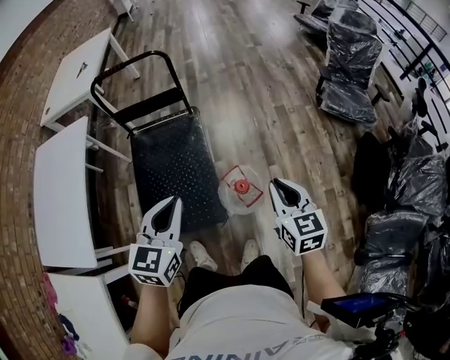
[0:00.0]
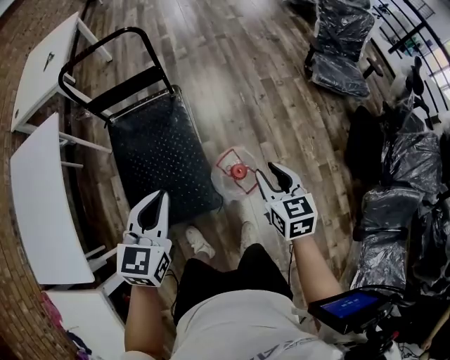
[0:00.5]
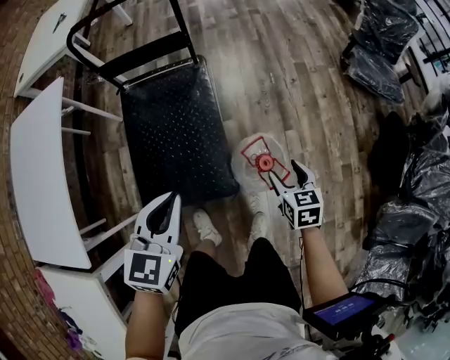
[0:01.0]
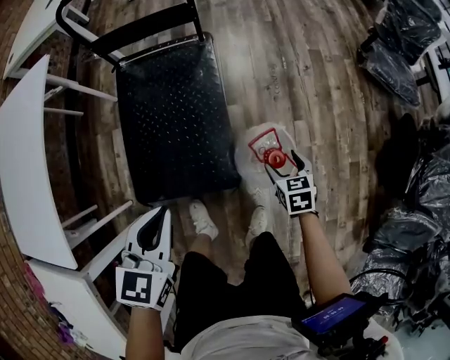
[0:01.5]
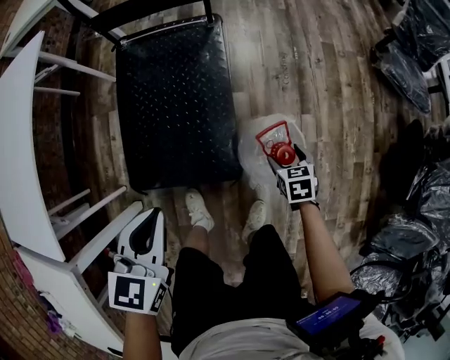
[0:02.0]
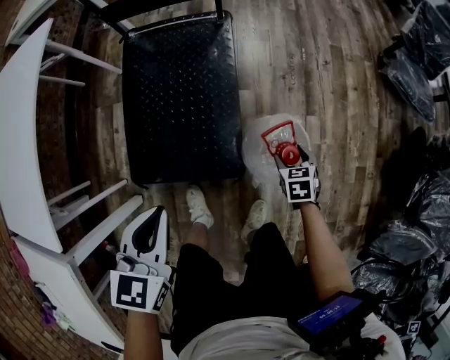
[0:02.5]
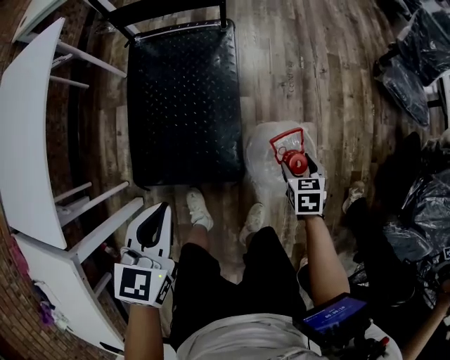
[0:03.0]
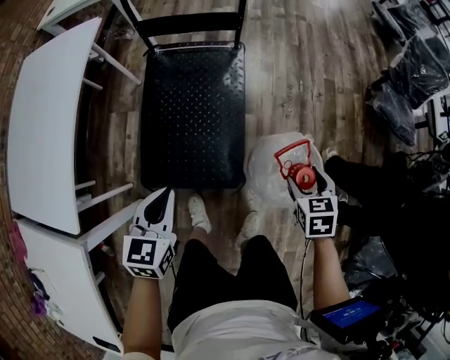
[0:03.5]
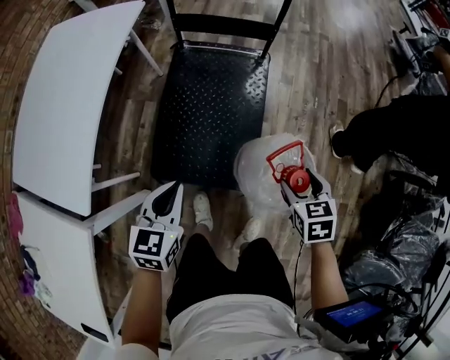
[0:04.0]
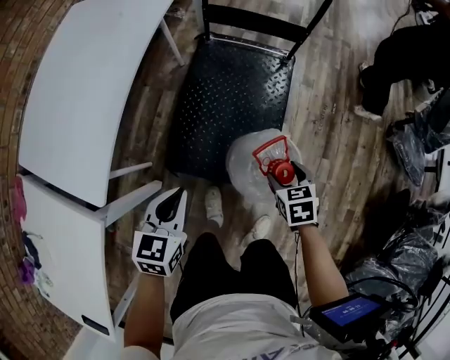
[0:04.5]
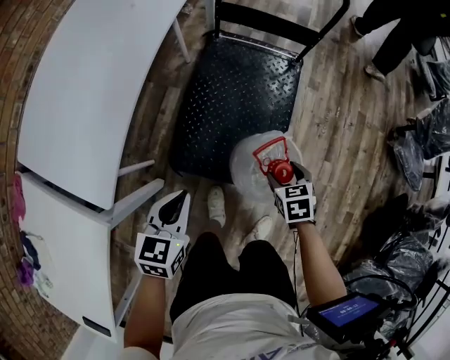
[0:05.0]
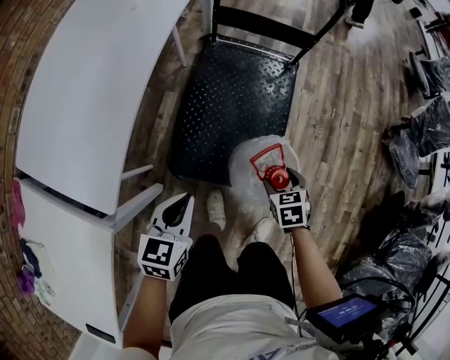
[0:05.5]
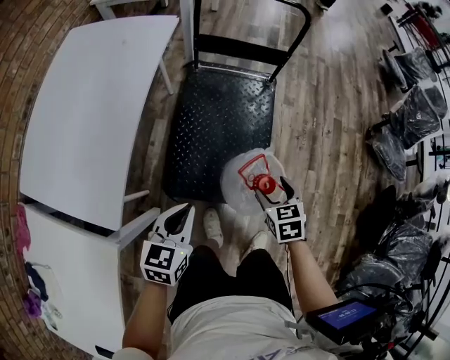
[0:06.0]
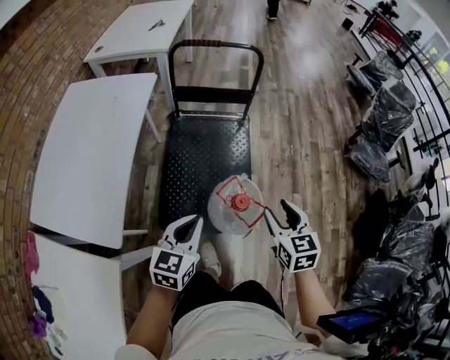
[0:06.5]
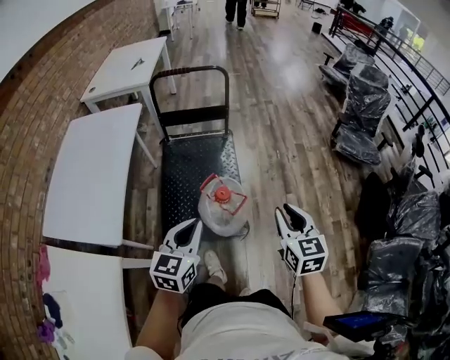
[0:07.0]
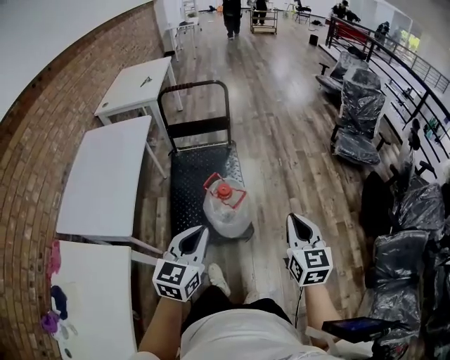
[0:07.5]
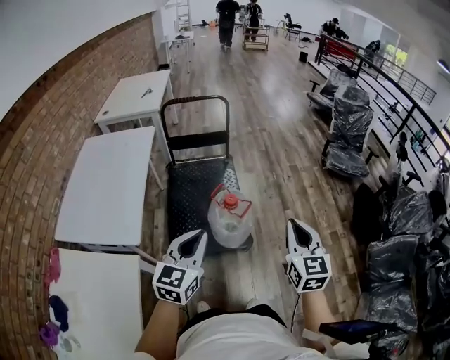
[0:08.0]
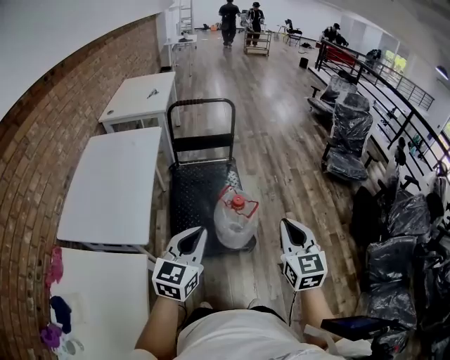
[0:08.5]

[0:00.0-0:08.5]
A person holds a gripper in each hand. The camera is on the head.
0:00.0 to 0:02.0: The left gripper heads downward and to the left, covering approximately 25 cm, and rotates approximately 20 degrees. The right gripper shifts some 40 cm downward, points its fingers some 40 degrees further downward, and opens up.
0:02.0 to 0:04.0: The left gripper is displaced to the left by approximately 10 cm, while the right gripper heads upward and to the left, covering roughly 30 cm.
0:04.0 to 0:06.5: The right gripper goes approximately 15 cm upward and to the left, and rotates about 20 degrees, while the left gripper moves upward, roughly 10 cm.
0:06.5 to 0:08.5: Both grippers travel together backward and upward, about 25 cm. The right gripper turns by about 20 degrees, and closes.

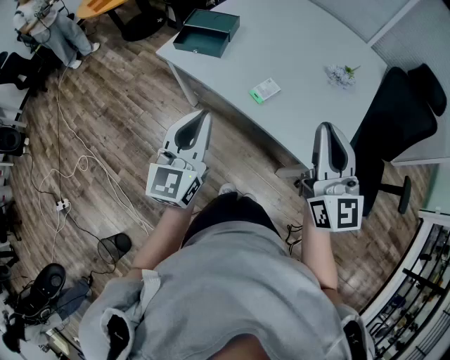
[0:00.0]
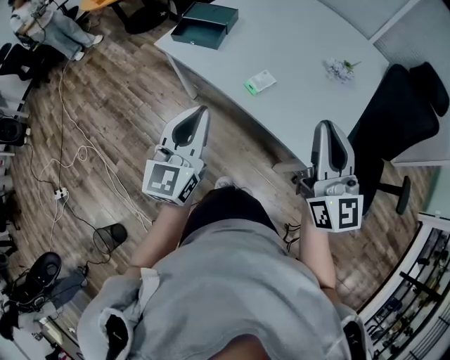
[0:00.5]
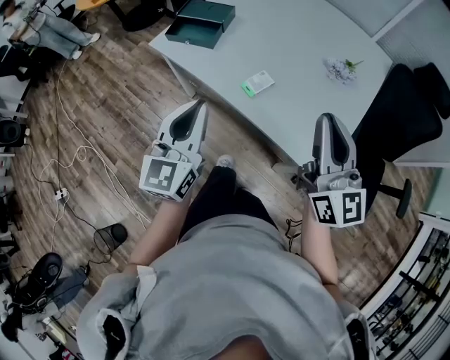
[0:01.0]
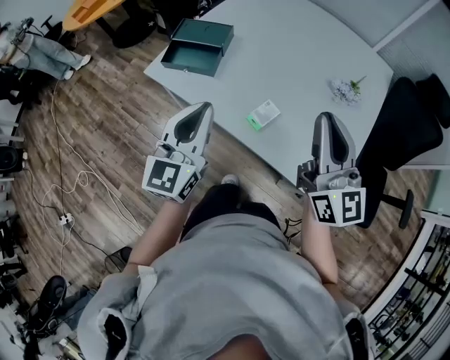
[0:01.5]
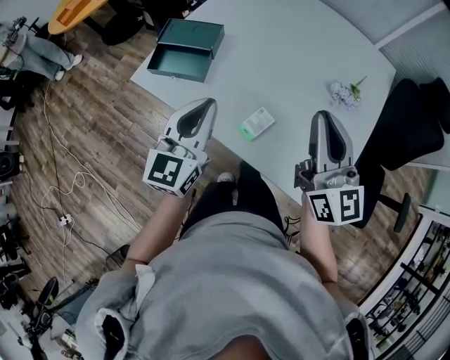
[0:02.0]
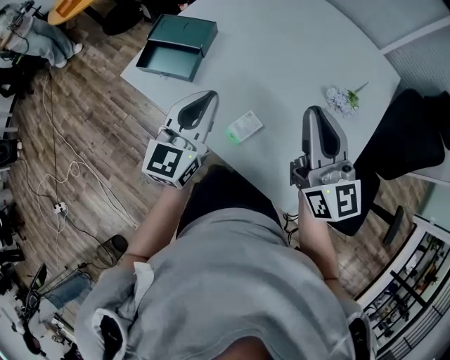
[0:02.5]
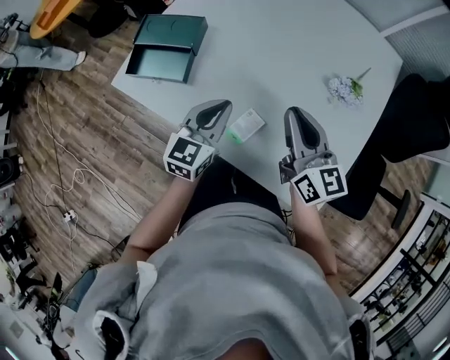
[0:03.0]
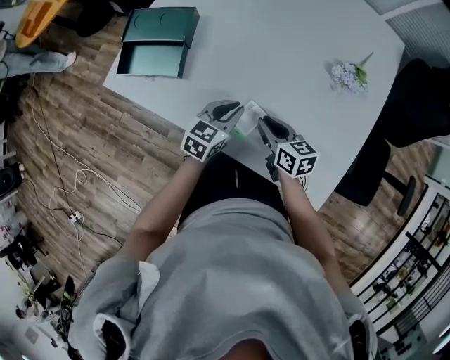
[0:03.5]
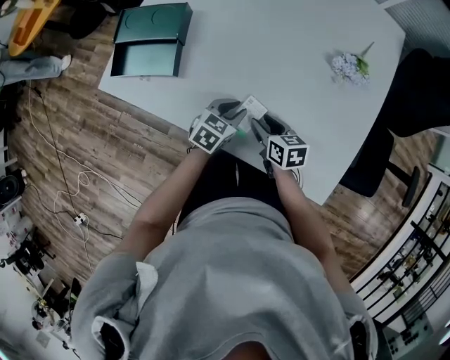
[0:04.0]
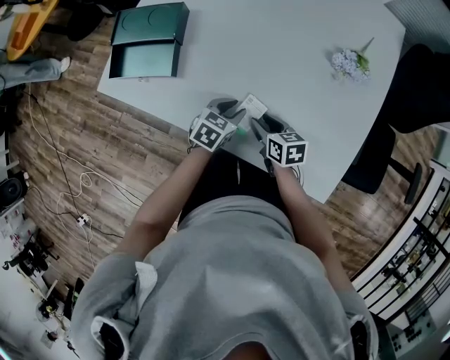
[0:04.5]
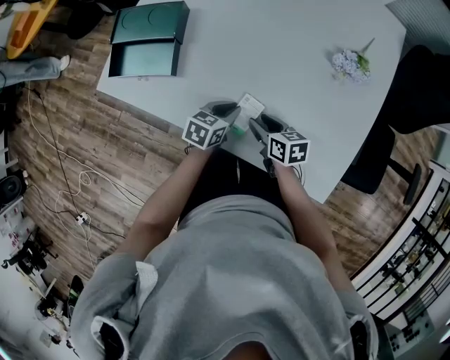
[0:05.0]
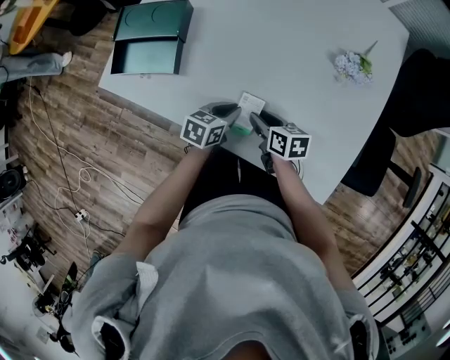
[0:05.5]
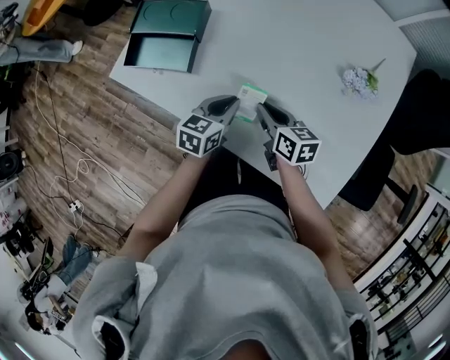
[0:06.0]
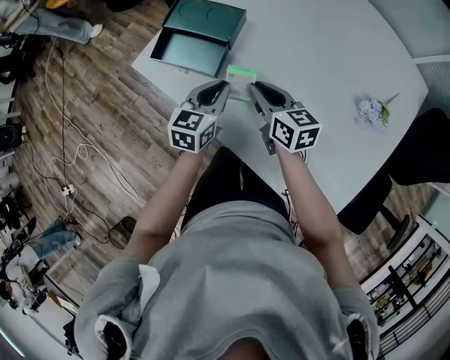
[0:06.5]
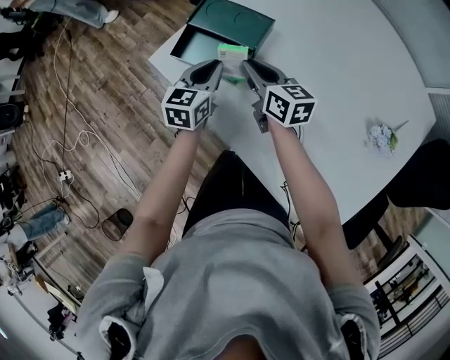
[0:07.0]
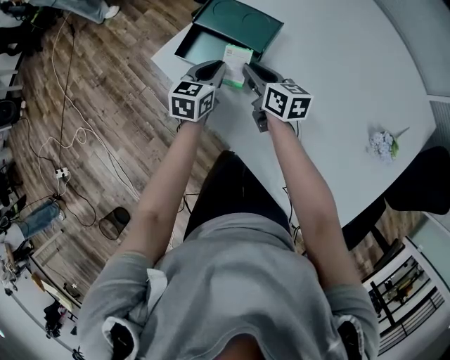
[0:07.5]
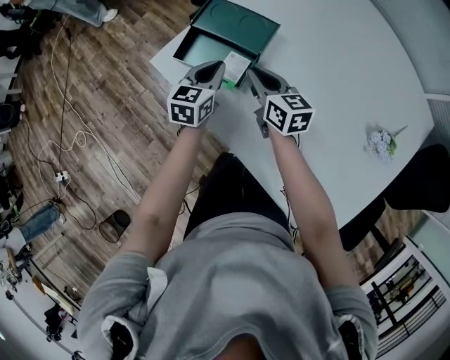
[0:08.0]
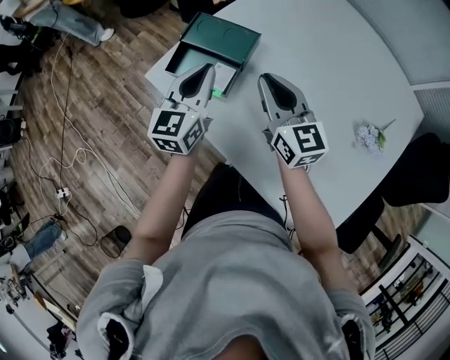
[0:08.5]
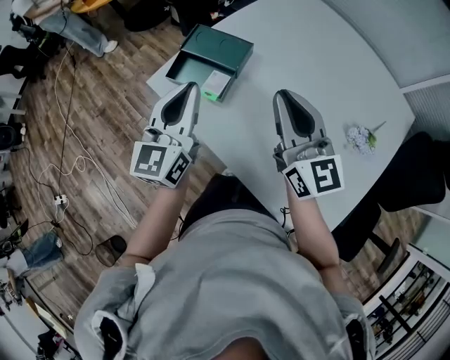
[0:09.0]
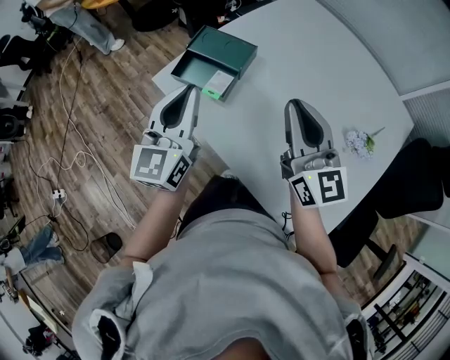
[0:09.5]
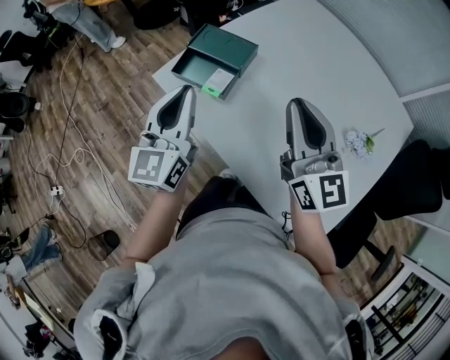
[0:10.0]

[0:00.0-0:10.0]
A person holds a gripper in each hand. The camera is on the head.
0:00.0 to 0:02.0: Both grippers travel together forward, about 30 cm.
0:02.0 to 0:04.0: Both grippers move downward, some 35 cm. The left gripper angles its fingers downward, by approximately 40 degrees, while the right gripper tilts its fingers some 50 degrees downward, and opens up.
0:04.0 to 0:06.0: The left gripper is displaced upward and to the left by about 10 cm, and changes its angle by roughly 20 degrees. The right gripper is displaced upward and forward by approximately 10 cm, and closes.
0:06.0 to 0:08.0: The right gripper heads forward and to the left, covering about 30 cm, and rotates some 20 degrees. The left gripper is displaced to the left and forward by approximately 30 cm, and rotates some 30 degrees.
0:08.0 to 0:10.0: The left gripper travels upward and backward by approximately 30 cm, and turns by some 30 degrees. The right gripper travels upward, backward and to the right by some 35 cm, and turns by roughly 40 degrees.

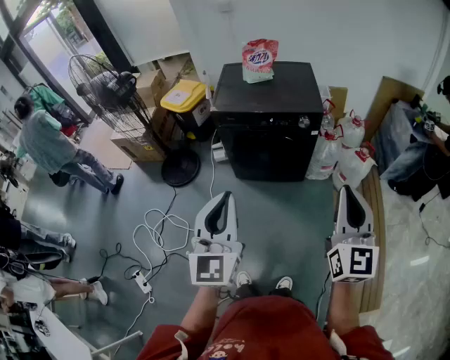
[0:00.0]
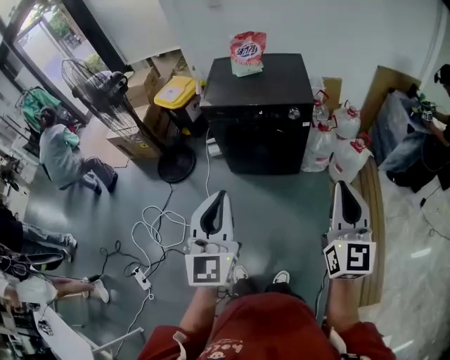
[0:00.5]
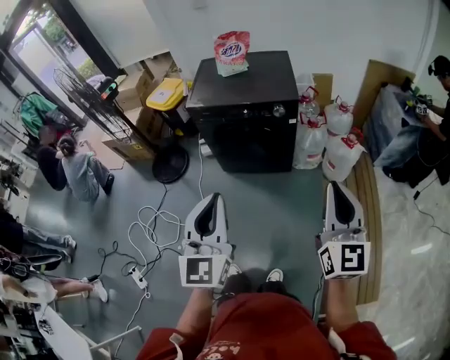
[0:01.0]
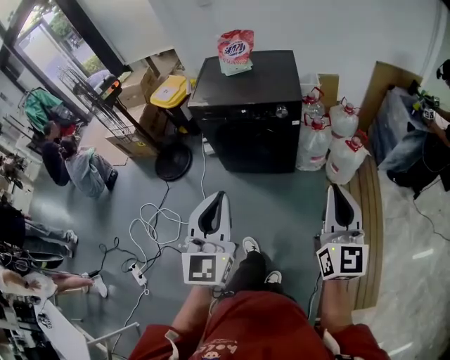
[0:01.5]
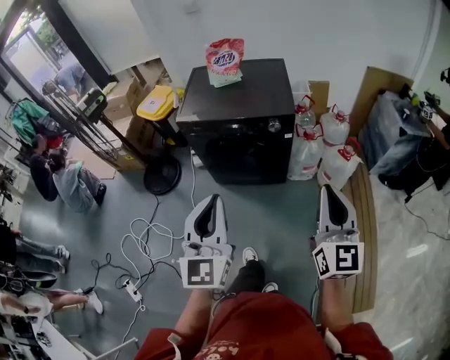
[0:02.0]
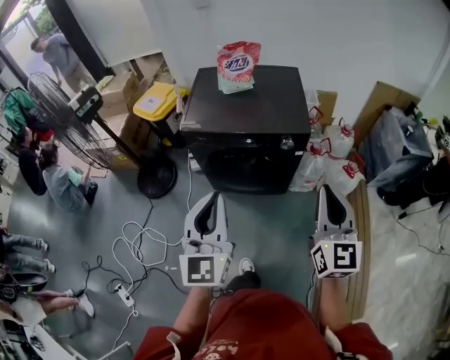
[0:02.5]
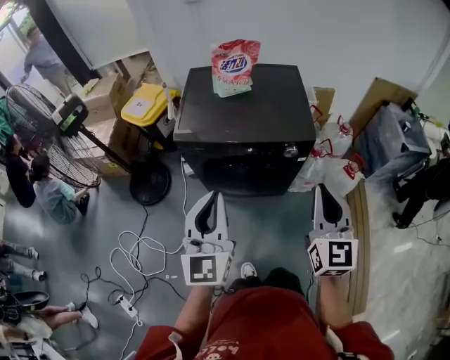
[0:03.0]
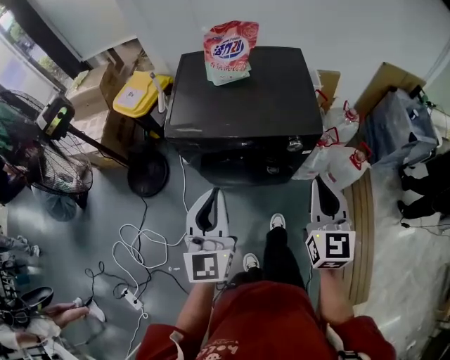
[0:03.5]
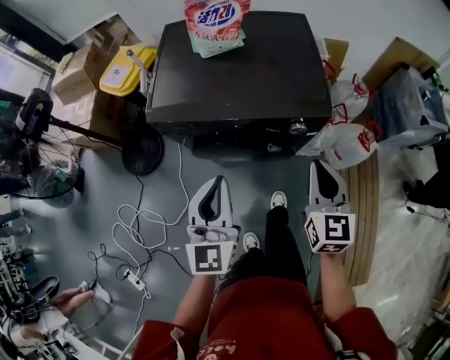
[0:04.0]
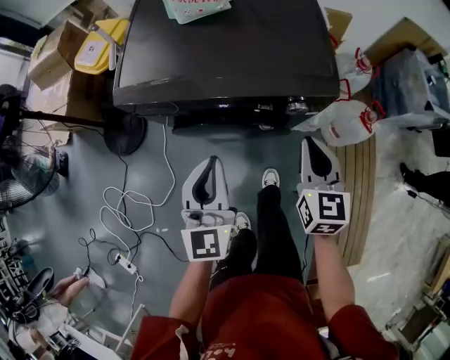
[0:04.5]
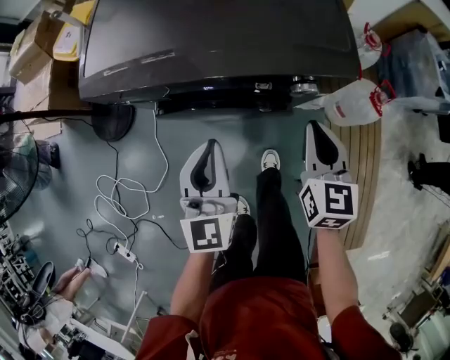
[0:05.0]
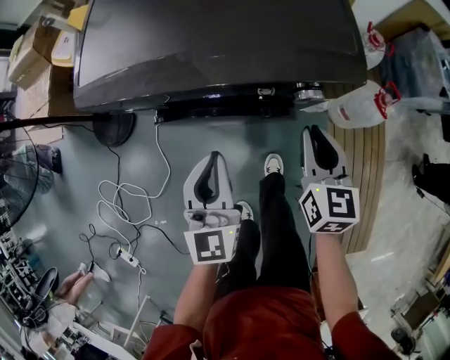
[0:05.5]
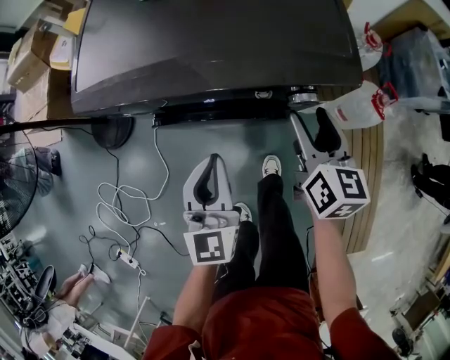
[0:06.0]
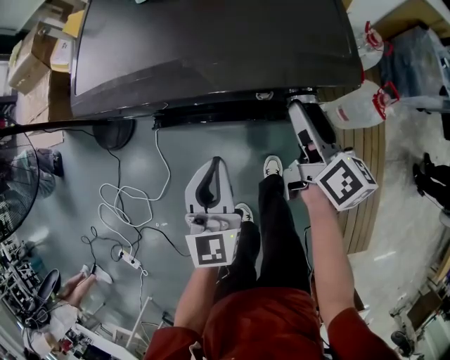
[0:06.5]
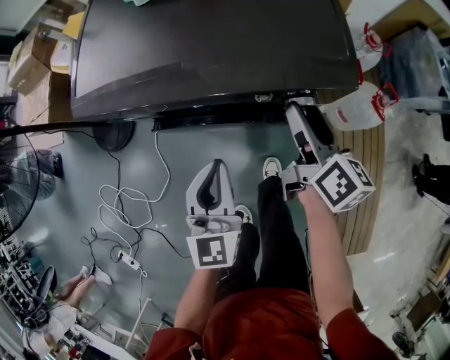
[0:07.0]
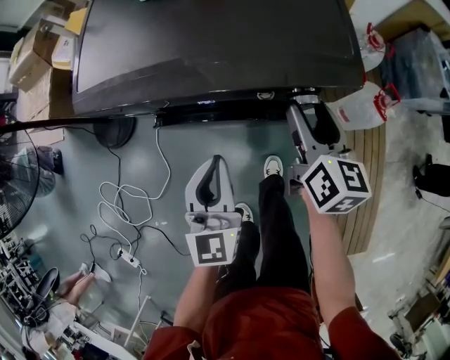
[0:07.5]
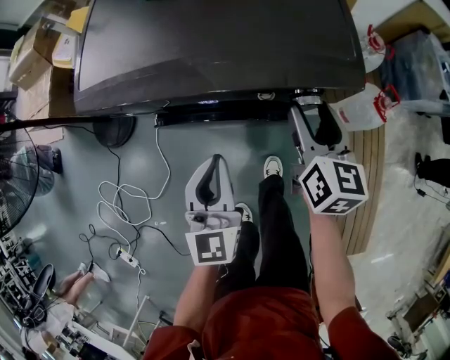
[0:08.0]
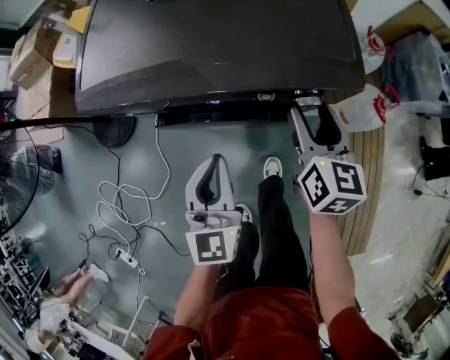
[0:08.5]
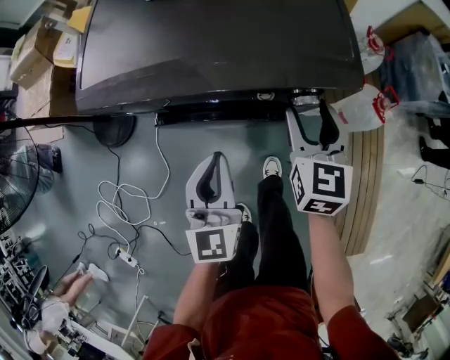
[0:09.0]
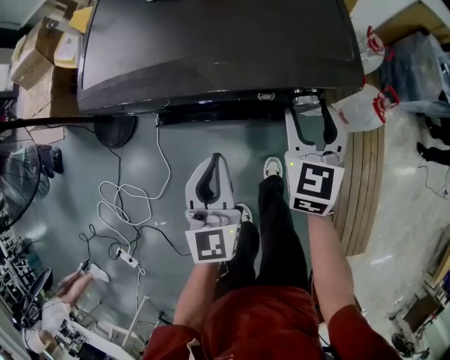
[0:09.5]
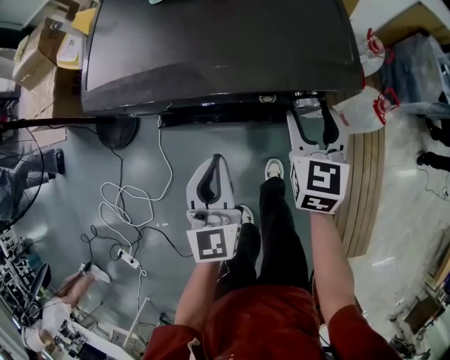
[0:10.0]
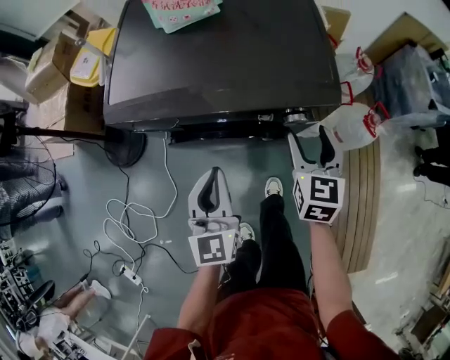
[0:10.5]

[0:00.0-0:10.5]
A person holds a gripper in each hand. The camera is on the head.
0:00.0 to 0:02.0: The grippers both shift to the right and forward by some 15 cm.
0:02.0 to 0:04.0: The two grippers go approximately 40 cm forward and downward. The right gripper swivels some 20 degrees.
0:04.0 to 0:06.5: The left gripper shifts some 20 cm downward; the right gripper shifts about 25 cm downward and forward, rolls clockwise, seen from behind, by approximately 40 degrees, and opens.
0:06.5 to 0:08.5: The right gripper swivels roughly 30 degrees.
0:08.5 to 0:10.5: The left gripper goes about 5 cm upward.
